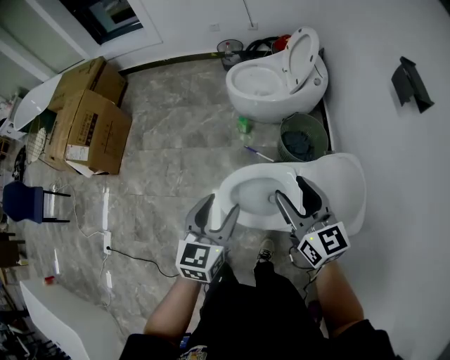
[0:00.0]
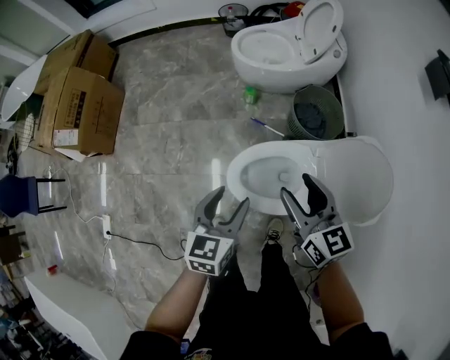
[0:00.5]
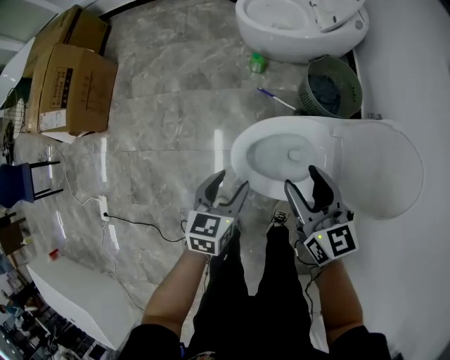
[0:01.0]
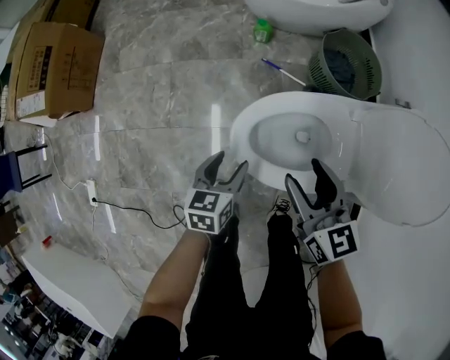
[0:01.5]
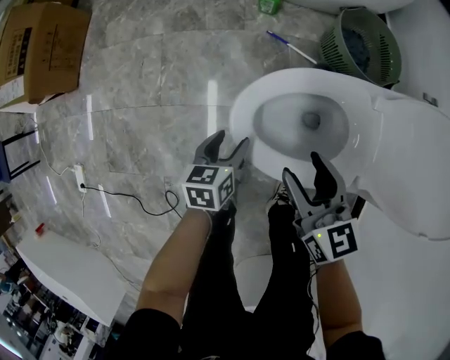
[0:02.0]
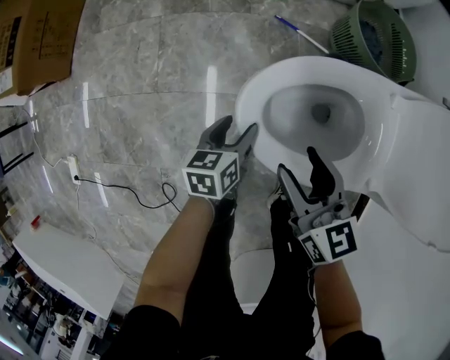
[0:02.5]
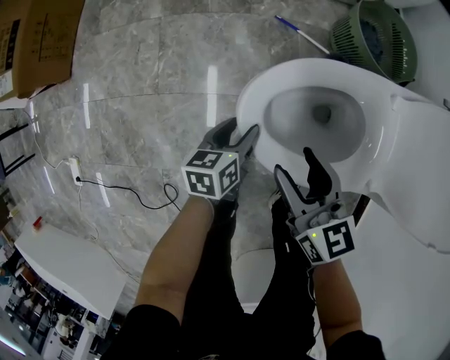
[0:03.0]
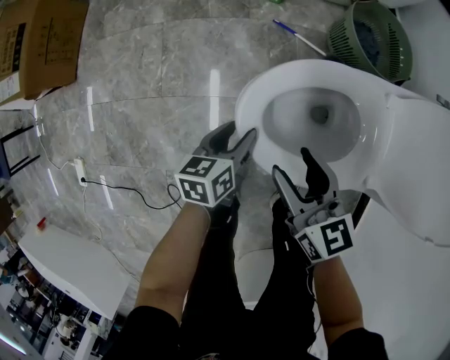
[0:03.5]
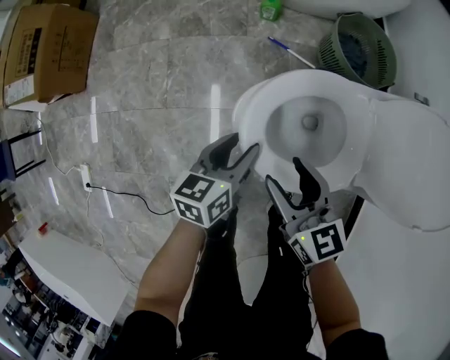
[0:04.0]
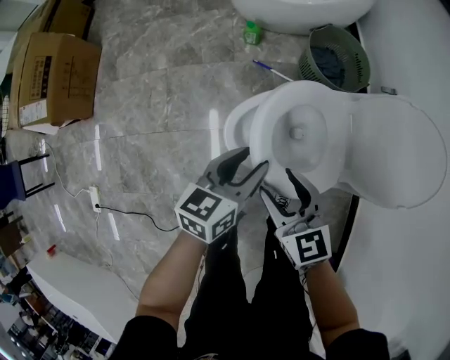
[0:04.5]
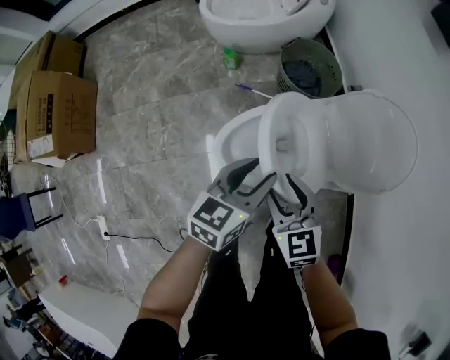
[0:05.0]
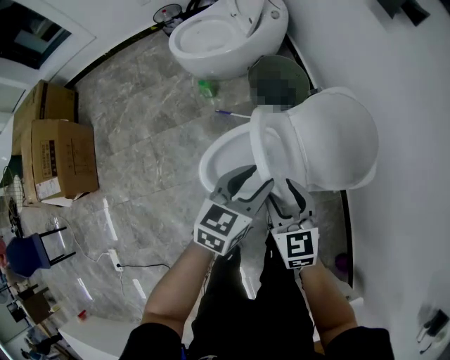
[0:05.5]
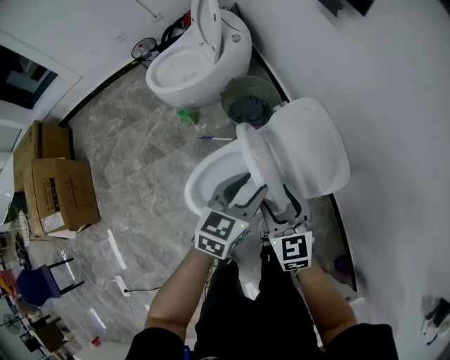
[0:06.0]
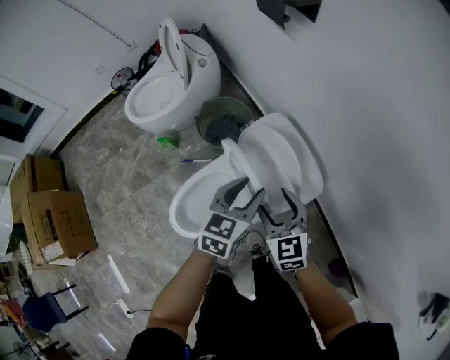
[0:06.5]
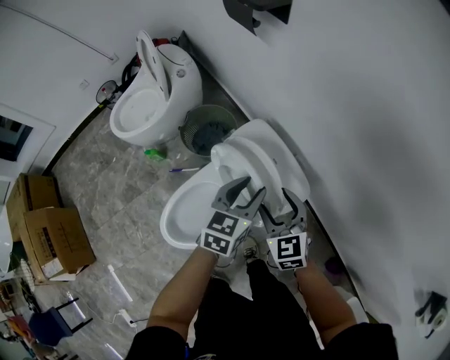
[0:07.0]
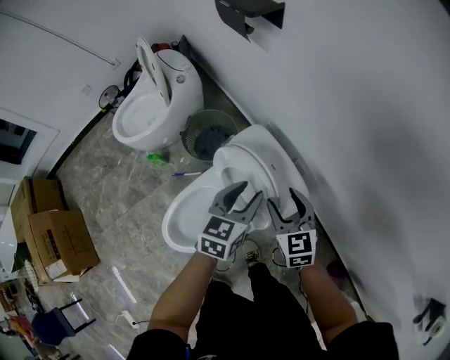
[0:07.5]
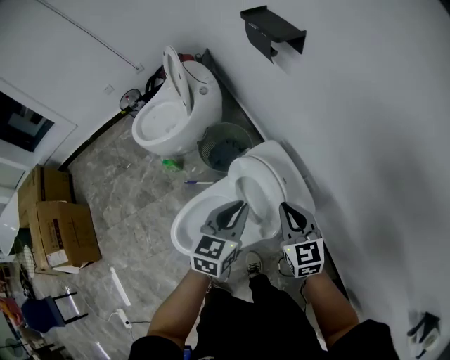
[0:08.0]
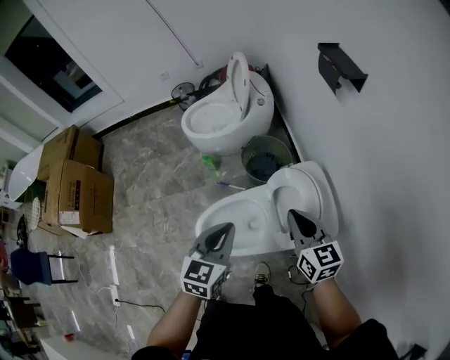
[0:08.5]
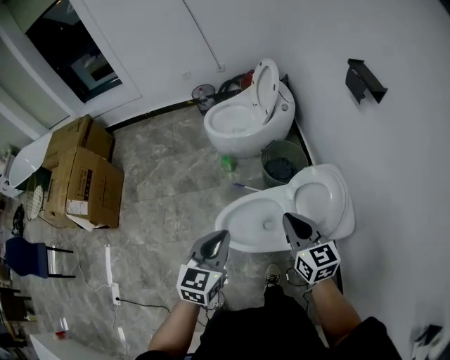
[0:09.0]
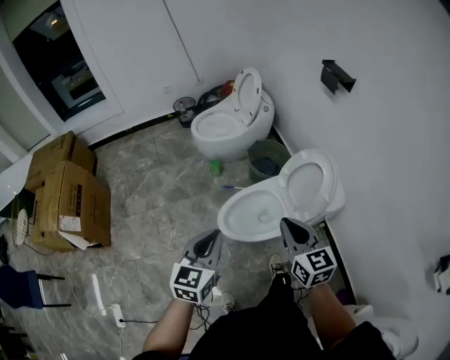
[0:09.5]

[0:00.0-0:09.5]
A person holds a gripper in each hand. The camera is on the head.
0:00.0 to 0:02.0: The two grippers go some 50 cm downward. The left gripper changes its angle by some 30 degrees.
0:02.0 to 0:04.0: The right gripper moves roughly 5 cm; the left gripper shifts about 10 cm upward.
0:04.0 to 0:05.5: The right gripper shifts by approximately 25 cm, and changes its angle by about 30 degrees. Meanwhile the left gripper moves upward, roughly 25 cm, and turns by roughly 40 degrees.
0:05.5 to 0:07.5: Both grippers move to the right and forward, some 30 cm. The right gripper swivels approximately 20 degrees.
0:07.5 to 0:09.5: The two grippers travel together, about 50 cm. The right gripper rotates roughly 20 degrees, and closes up, while the left gripper turns by approximately 30 degrees, and closes up.

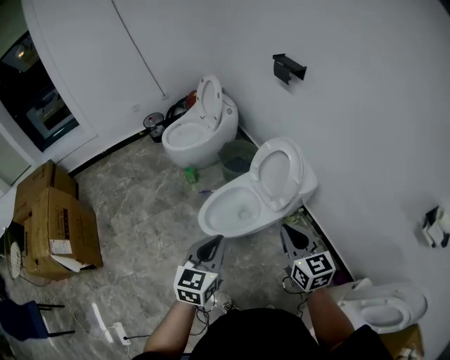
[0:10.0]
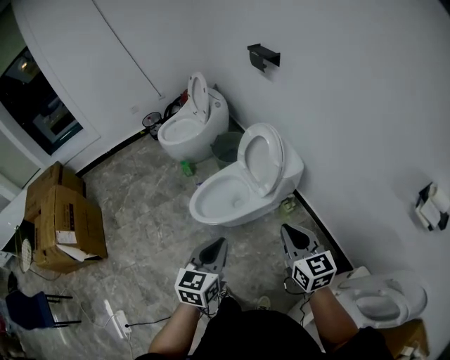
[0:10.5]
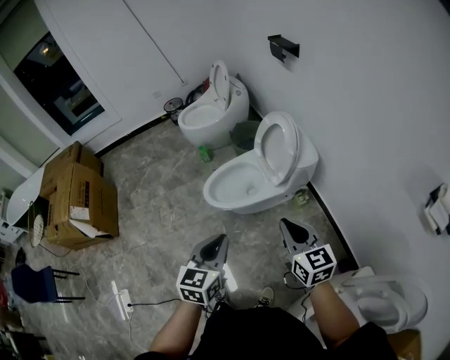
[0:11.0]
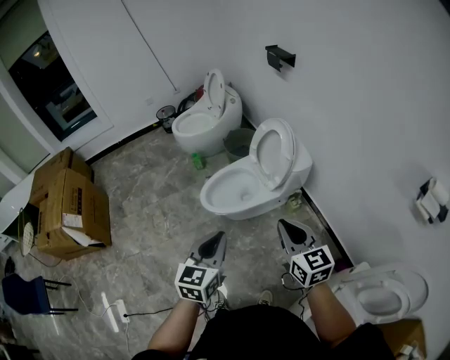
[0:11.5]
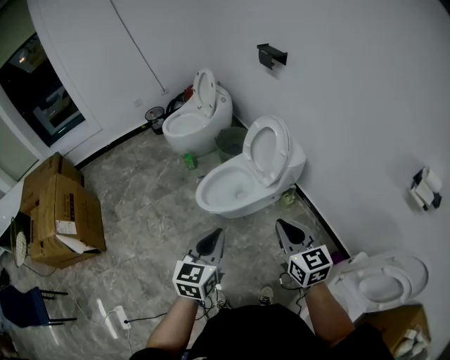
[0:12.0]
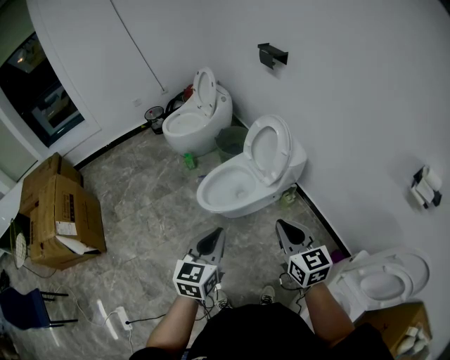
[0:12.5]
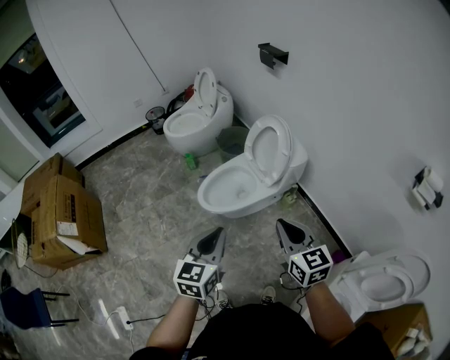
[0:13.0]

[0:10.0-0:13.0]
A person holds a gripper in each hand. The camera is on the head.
0:10.0 to 0:11.5: The right gripper travels backward by approximately 15 cm; the left gripper goes approximately 20 cm backward and to the right.
0:11.5 to 0:13.0: The grippers make only small movements.

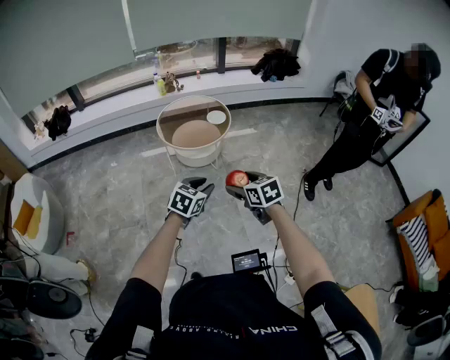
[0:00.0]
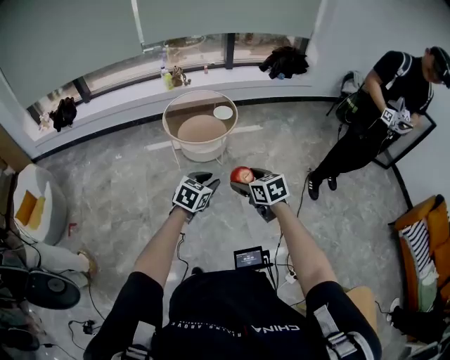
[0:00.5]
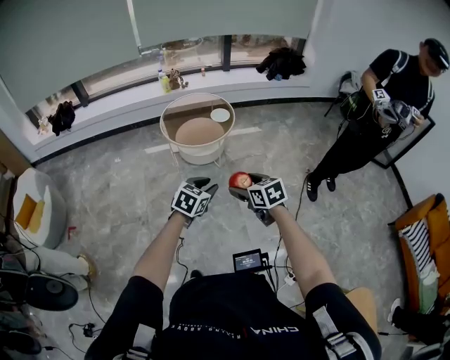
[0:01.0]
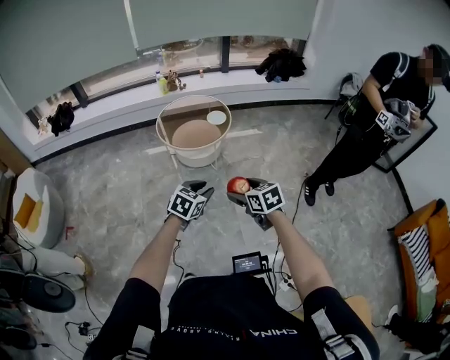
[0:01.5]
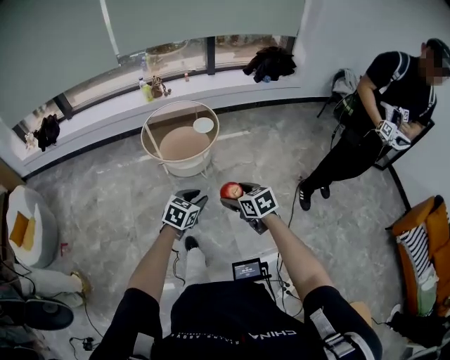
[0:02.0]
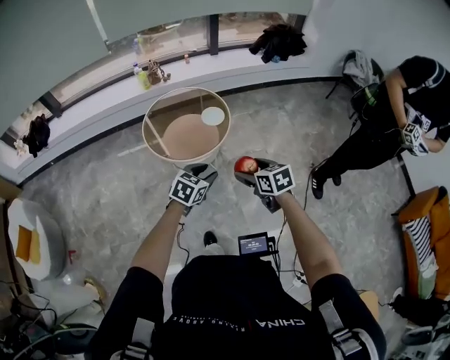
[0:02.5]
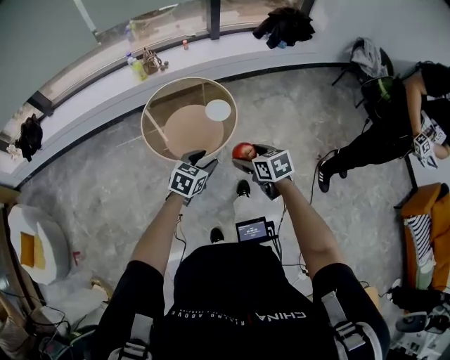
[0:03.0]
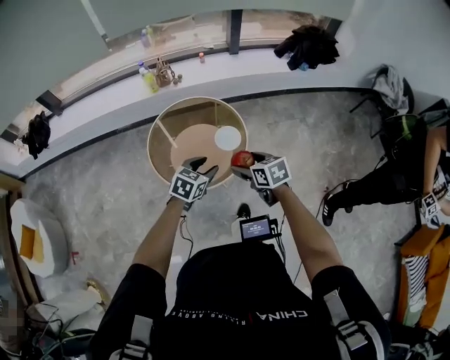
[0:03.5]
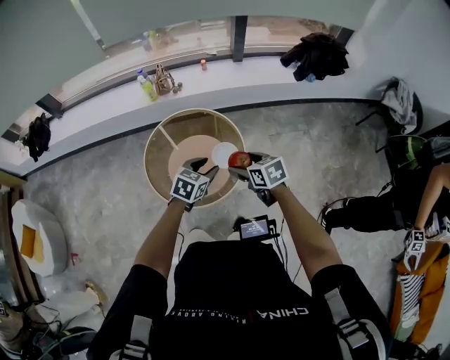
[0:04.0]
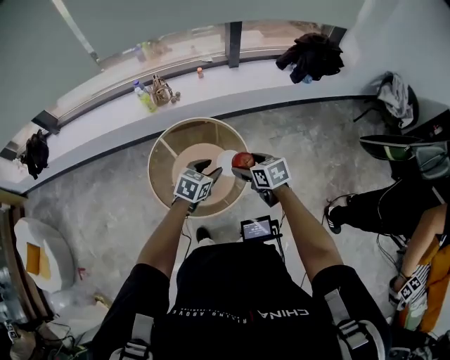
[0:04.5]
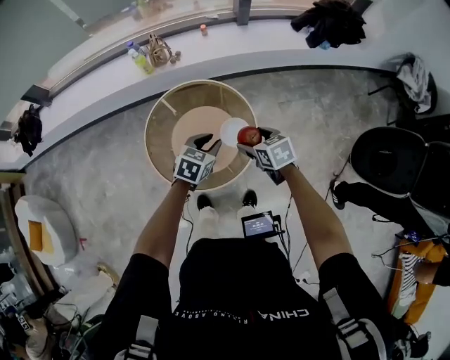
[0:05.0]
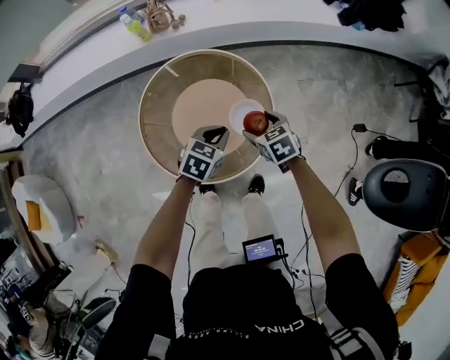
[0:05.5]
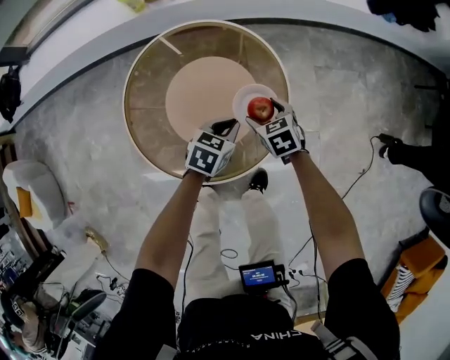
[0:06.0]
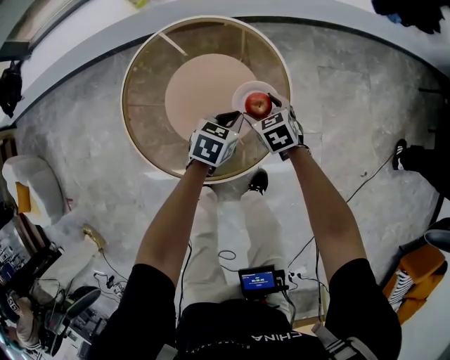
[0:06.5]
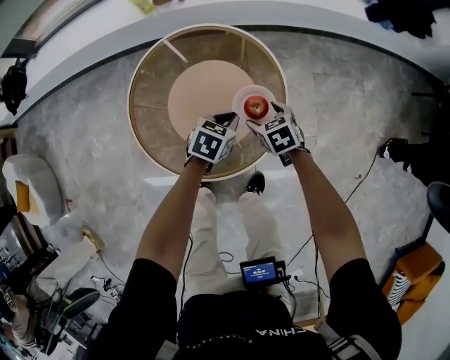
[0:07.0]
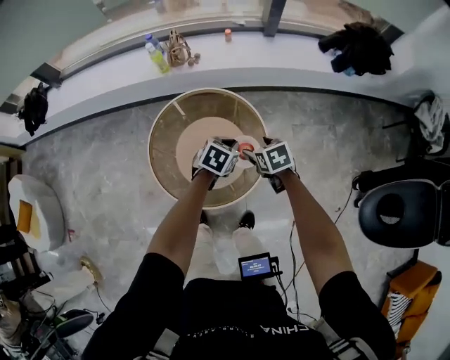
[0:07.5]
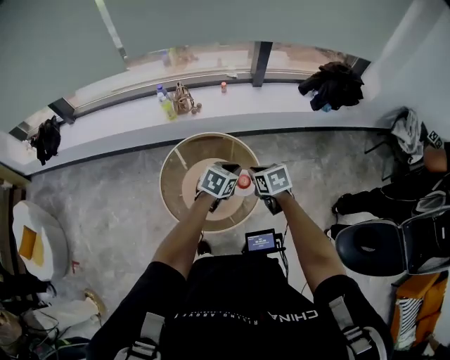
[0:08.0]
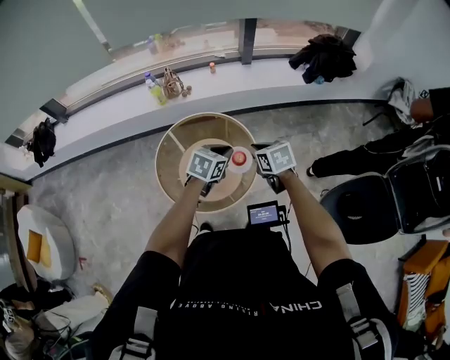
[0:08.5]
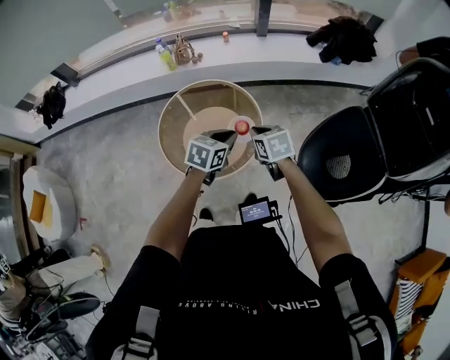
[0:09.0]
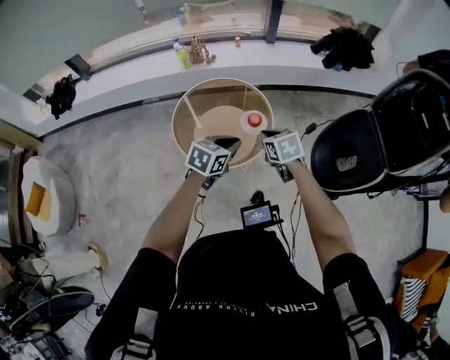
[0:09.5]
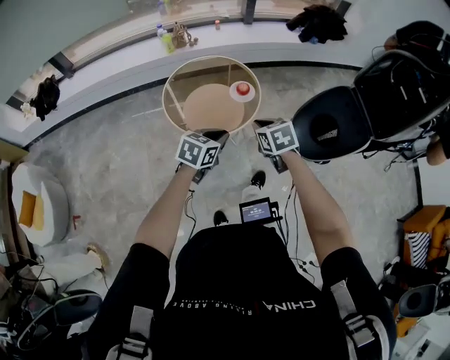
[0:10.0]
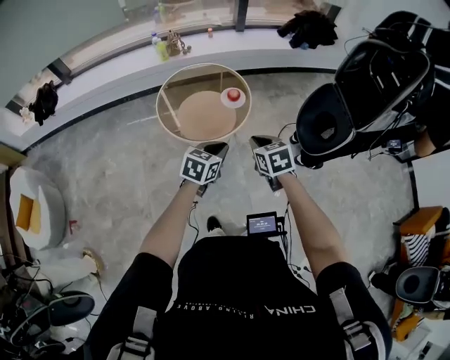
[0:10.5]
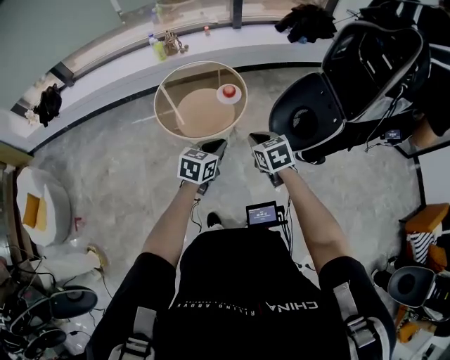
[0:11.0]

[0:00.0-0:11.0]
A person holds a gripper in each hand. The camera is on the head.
0:00.0 to 0:02.0: The grippers both shift forward, to the right and downward by approximately 15 cm.
0:02.0 to 0:03.5: The pair of grippers is taken forward, about 60 cm.
0:03.5 to 0:05.5: Both grippers travel together forward and downward, about 35 cm. The left gripper closes.
0:05.5 to 0:07.5: The left gripper moves roughly 15 cm downward and comes back; the right gripper goes some 10 cm upward.
0:07.5 to 0:09.0: The two grippers go approximately 20 cm upward and backward. The right gripper closes up.
0:09.0 to 0:11.0: The two grippers travel together, backward, roughly 40 cm.

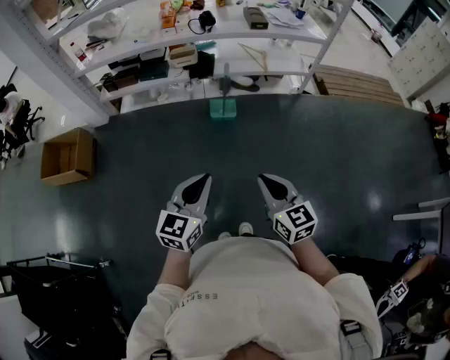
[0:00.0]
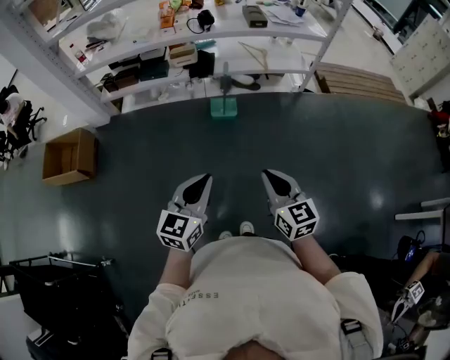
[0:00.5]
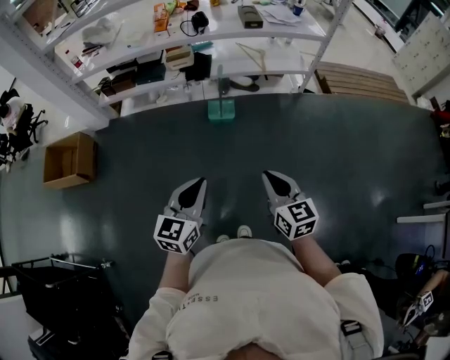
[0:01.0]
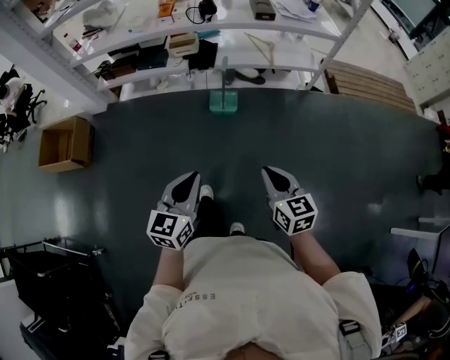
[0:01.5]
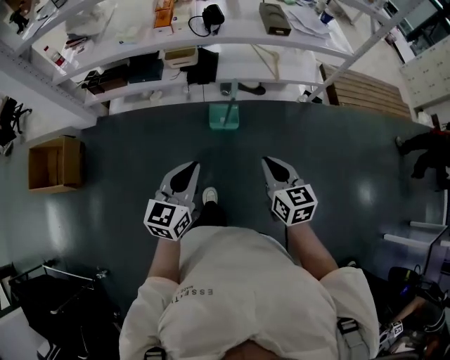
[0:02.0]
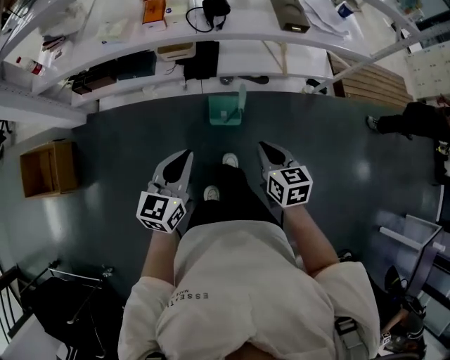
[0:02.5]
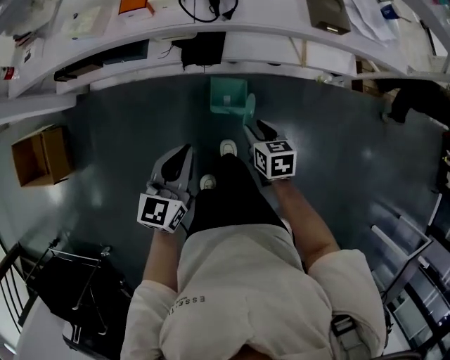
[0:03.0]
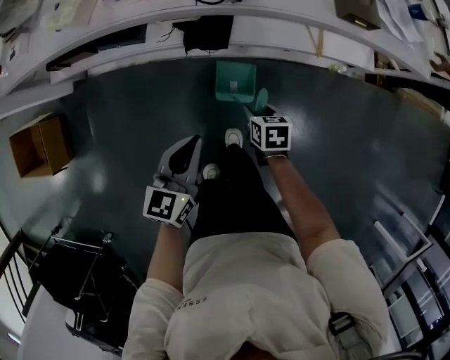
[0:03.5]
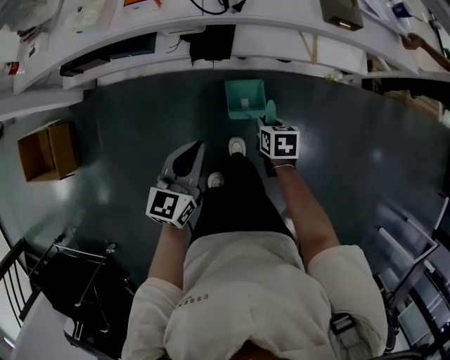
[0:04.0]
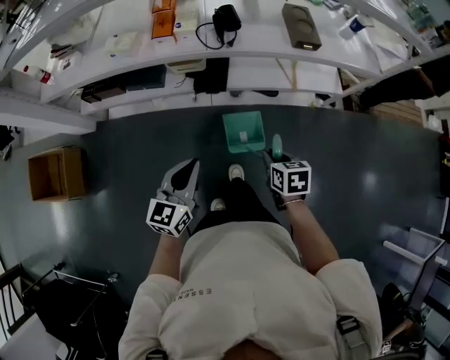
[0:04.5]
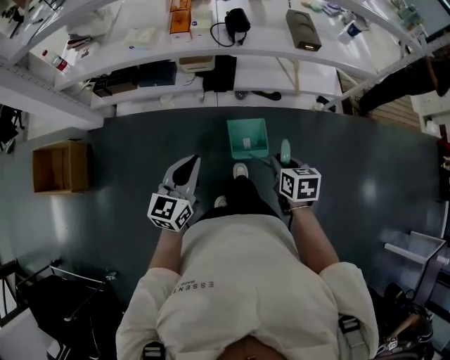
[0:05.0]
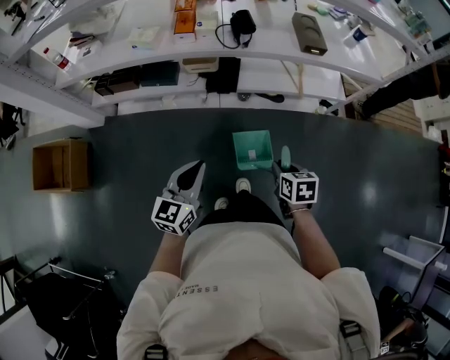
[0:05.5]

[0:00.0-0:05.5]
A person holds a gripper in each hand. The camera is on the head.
0:00.0 to 0:02.0: Both grippers move forward, about 30 cm.
0:02.0 to 0:03.5: Both grippers move forward and downward, some 40 cm. The right gripper points its fingers some 30 degrees further downward, and opens up.
0:03.5 to 0:05.5: The grippers both shift backward and upward by approximately 25 cm. The right gripper closes.
